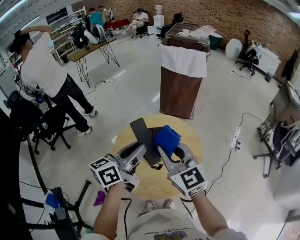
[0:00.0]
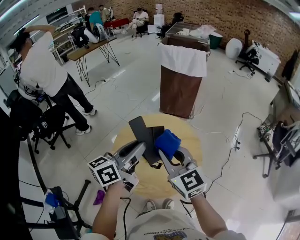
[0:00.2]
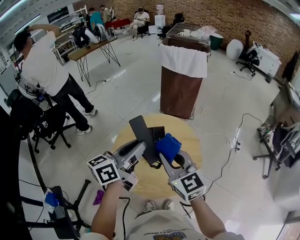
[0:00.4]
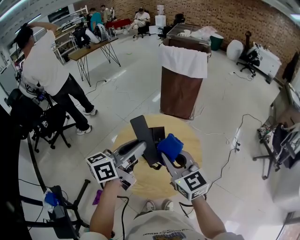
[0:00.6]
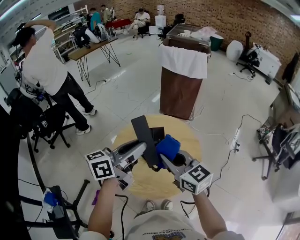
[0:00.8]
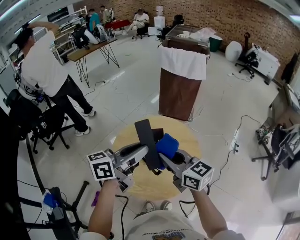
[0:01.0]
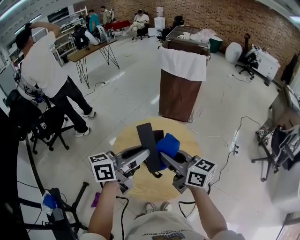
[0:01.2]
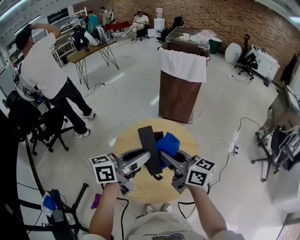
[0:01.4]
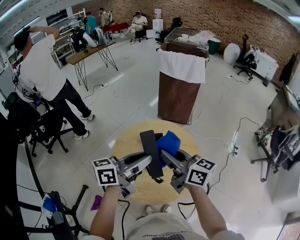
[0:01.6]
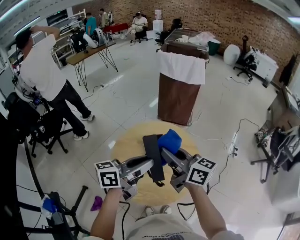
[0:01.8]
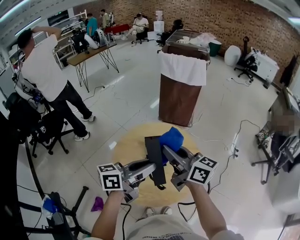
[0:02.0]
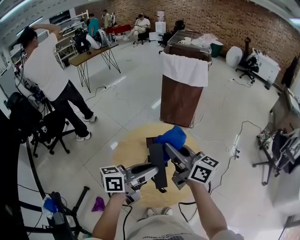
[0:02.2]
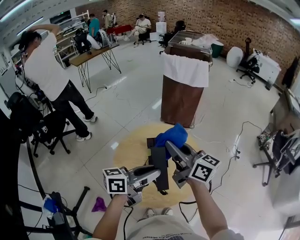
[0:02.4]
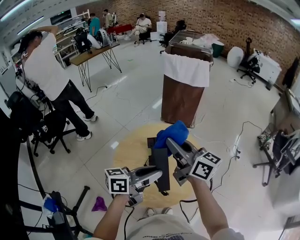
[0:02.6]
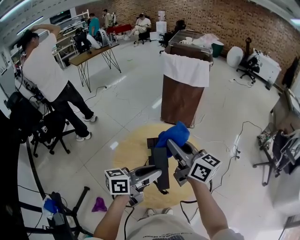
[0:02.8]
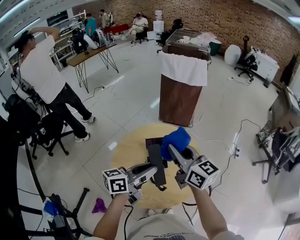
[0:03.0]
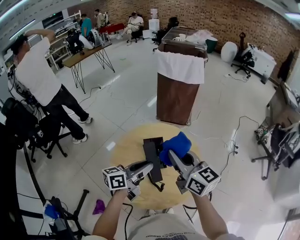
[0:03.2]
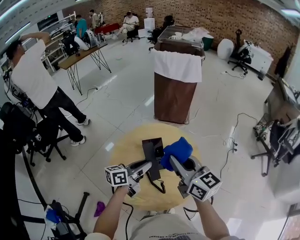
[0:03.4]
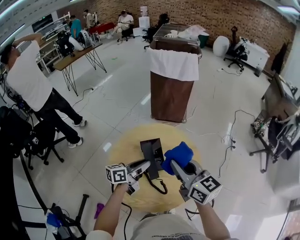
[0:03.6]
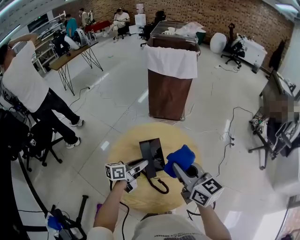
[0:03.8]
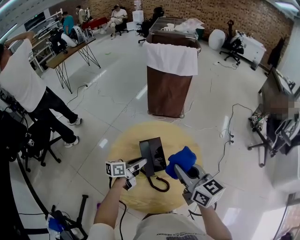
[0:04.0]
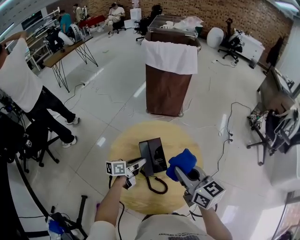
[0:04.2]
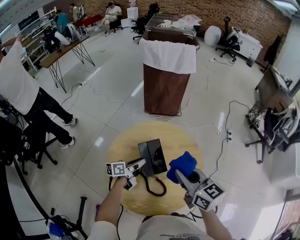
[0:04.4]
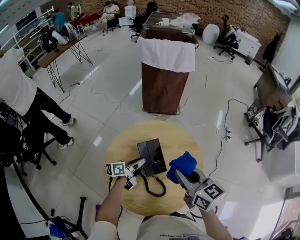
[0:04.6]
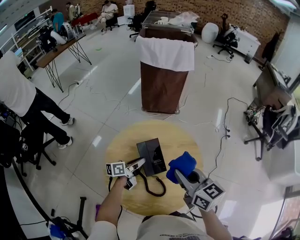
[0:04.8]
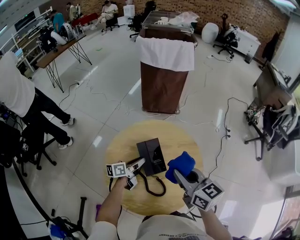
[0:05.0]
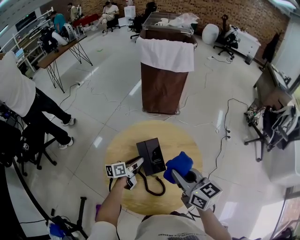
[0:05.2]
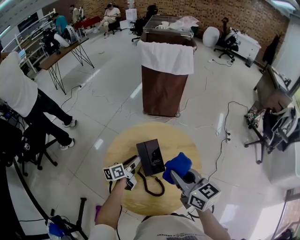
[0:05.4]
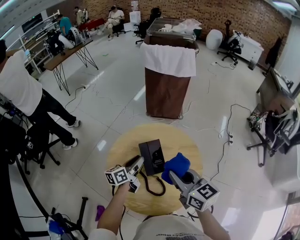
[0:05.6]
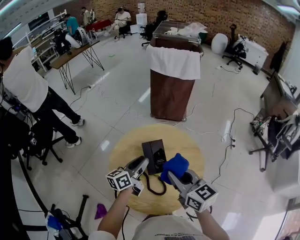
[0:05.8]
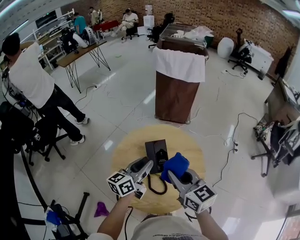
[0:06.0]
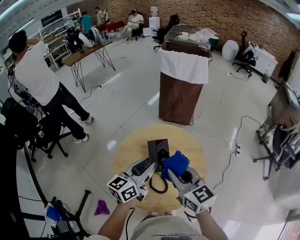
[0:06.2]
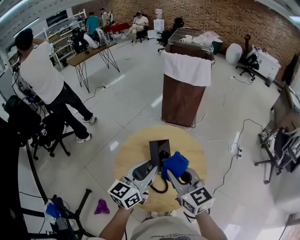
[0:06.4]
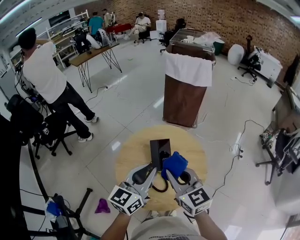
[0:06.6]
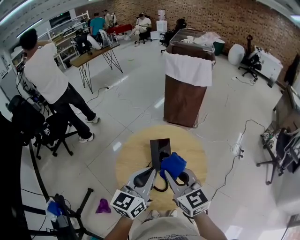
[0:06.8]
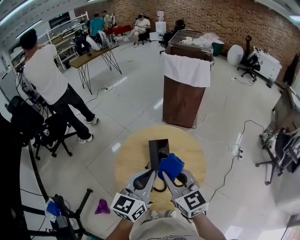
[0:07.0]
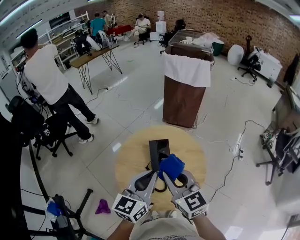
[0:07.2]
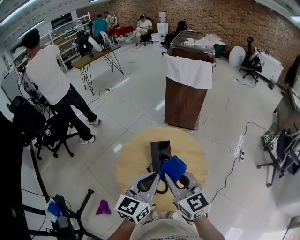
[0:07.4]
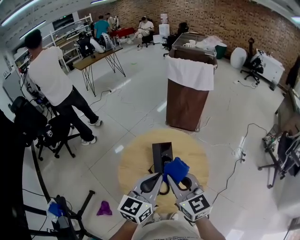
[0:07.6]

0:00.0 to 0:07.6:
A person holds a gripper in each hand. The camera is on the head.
0:00.0 to 0:01.6: The right gripper swivels approximately 40 degrees.
0:01.6 to 0:03.0: The left gripper moves downward, about 5 cm.
0:03.0 to 0:04.6: The right gripper is displaced downward by approximately 10 cm. Meanwhile the left gripper travels downward and forward by roughly 25 cm, and swivels some 20 degrees.
0:04.6 to 0:06.0: The left gripper moves upward, approximately 20 cm, and turns by about 30 degrees. Meanwhile the right gripper shifts by some 5 cm.
0:06.0 to 0:07.6: The left gripper moves backward and upward, some 15 cm, changes its angle by about 30 degrees, and closes its fingers.

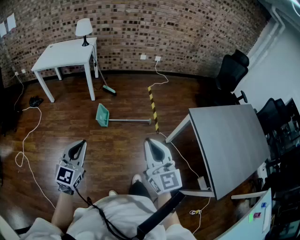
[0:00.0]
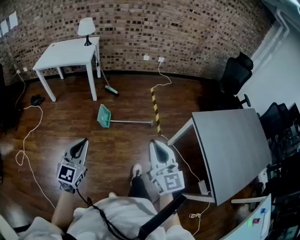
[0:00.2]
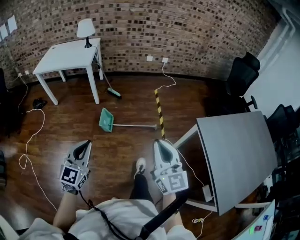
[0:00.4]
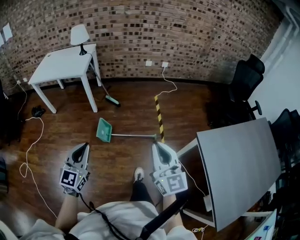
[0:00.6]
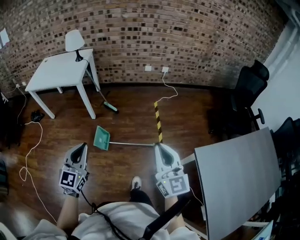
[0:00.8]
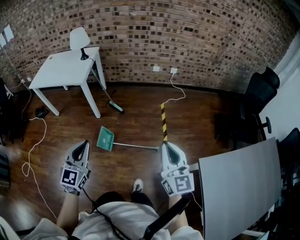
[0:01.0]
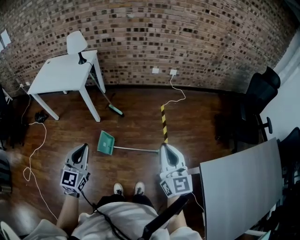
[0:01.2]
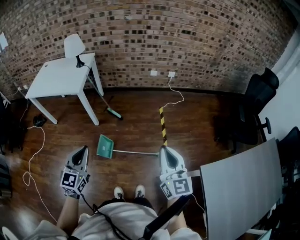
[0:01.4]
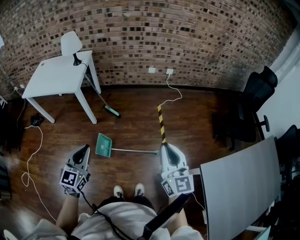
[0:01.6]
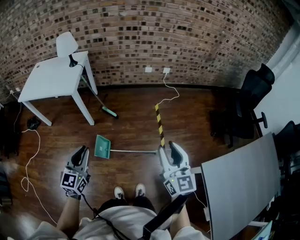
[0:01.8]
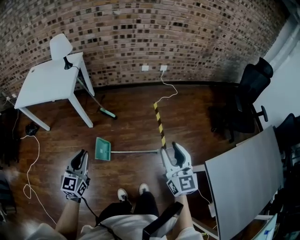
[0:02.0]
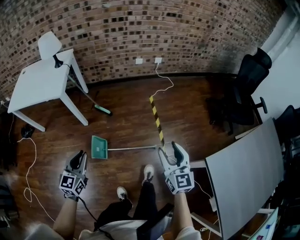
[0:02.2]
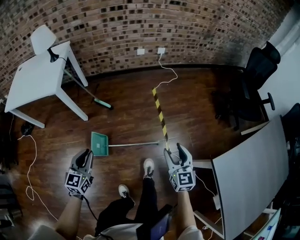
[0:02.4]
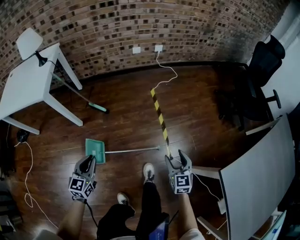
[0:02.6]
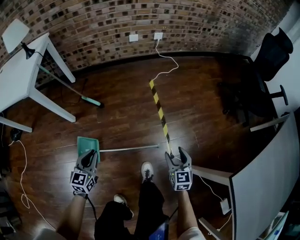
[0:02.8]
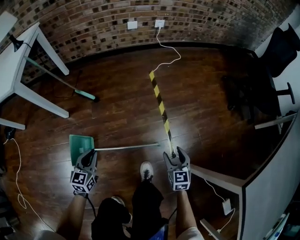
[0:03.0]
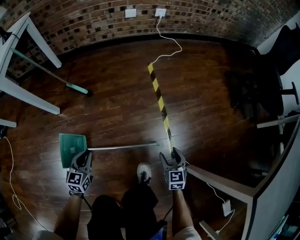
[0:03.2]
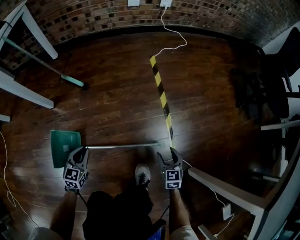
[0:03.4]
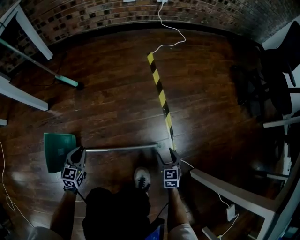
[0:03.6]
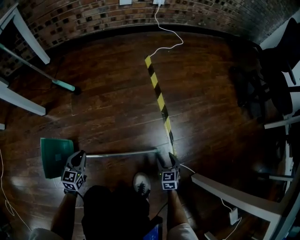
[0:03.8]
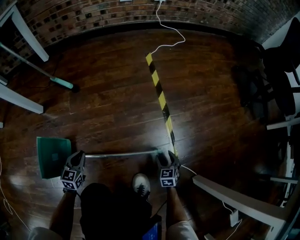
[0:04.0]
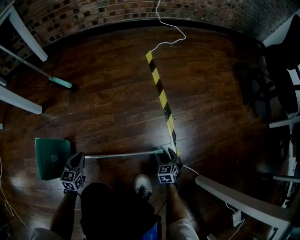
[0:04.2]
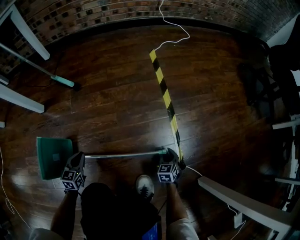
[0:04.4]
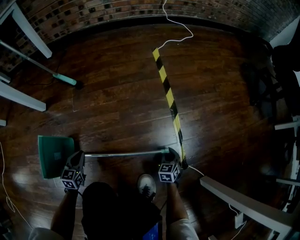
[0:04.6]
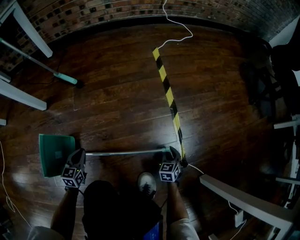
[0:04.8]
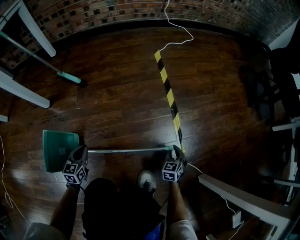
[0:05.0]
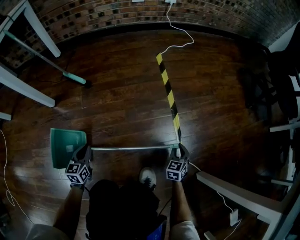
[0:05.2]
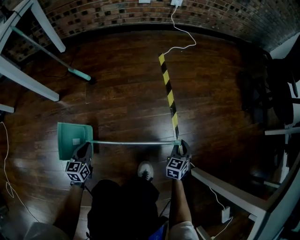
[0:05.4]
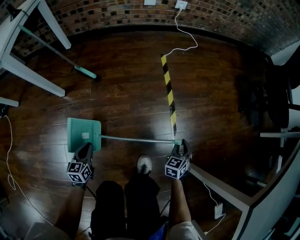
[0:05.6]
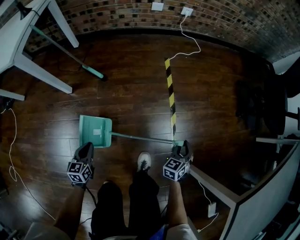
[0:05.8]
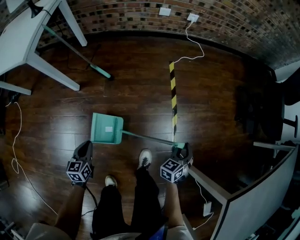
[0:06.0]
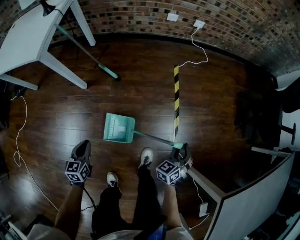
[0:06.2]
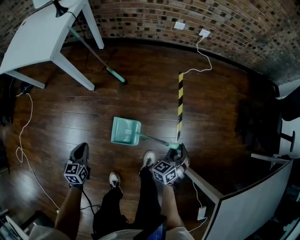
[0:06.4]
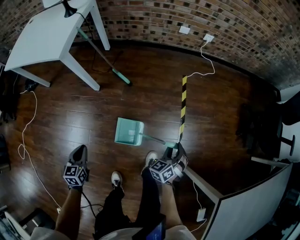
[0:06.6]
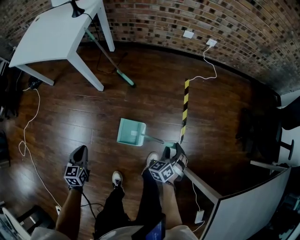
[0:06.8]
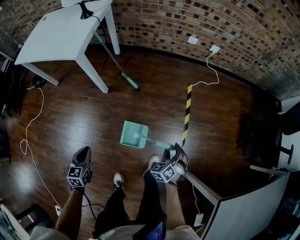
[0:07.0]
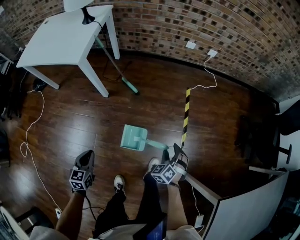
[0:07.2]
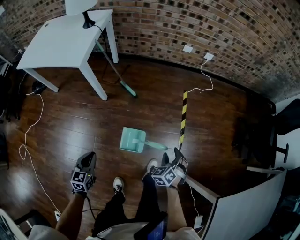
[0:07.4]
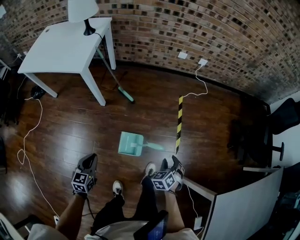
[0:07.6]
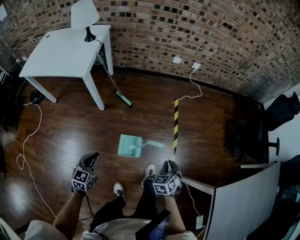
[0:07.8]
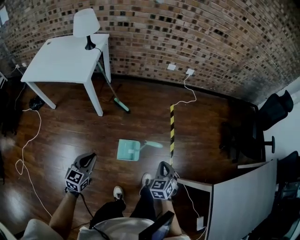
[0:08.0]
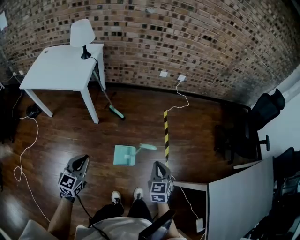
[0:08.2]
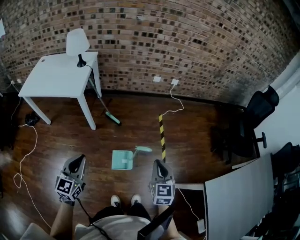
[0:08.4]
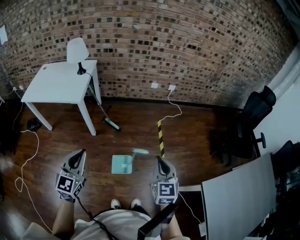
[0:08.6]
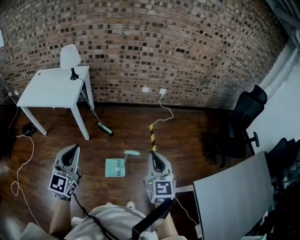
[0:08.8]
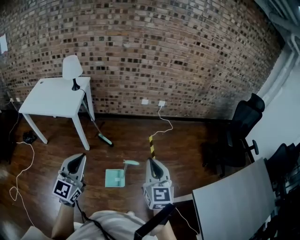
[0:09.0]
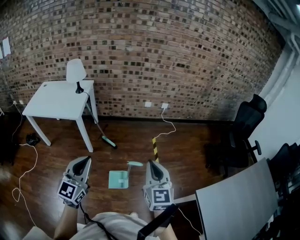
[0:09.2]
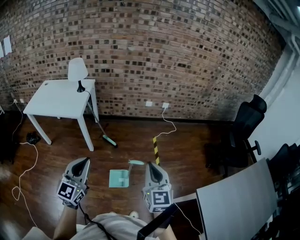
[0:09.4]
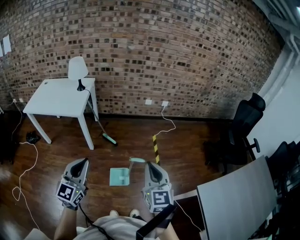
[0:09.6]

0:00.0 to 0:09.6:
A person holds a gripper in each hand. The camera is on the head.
0:00.0 to 0:01.6: Both grippers are carried forward, some 50 cm.
0:01.6 to 0:03.2: The two grippers go some 70 cm downward. The left gripper changes its angle by some 30 degrees; the right gripper tilts its fingers about 40 degrees downward, and opens its fingers.
0:03.2 to 0:04.8: The grippers both shift downward by some 30 cm. The right gripper closes.
0:04.8 to 0:06.4: Both grippers travel together upward, about 50 cm. The right gripper turns by roughly 20 degrees. The left gripper rotates roughly 20 degrees.
0:06.4 to 0:08.0: The left gripper is displaced upward by about 25 cm, and turns by roughly 30 degrees, while the right gripper moves upward, backward and to the left, about 30 cm, and closes.
0:08.0 to 0:09.6: Both grippers move upward, some 30 cm. The left gripper tilts its fingers approximately 30 degrees upward. Meanwhile the right gripper points its fingers approximately 40 degrees further upward.

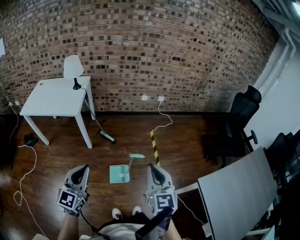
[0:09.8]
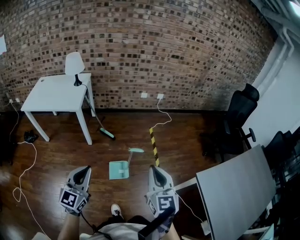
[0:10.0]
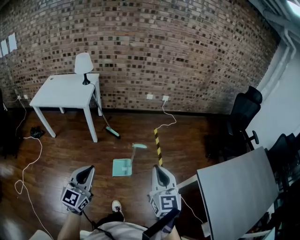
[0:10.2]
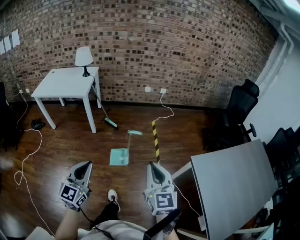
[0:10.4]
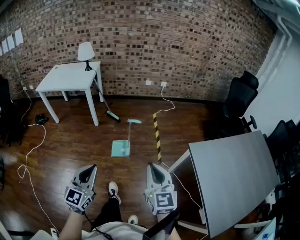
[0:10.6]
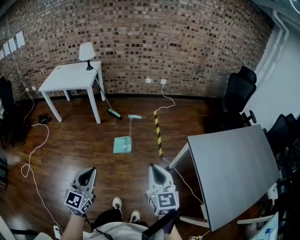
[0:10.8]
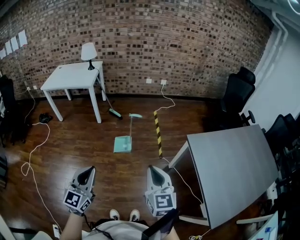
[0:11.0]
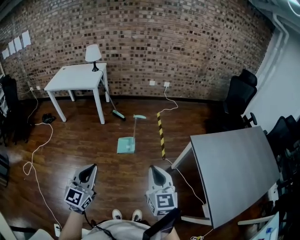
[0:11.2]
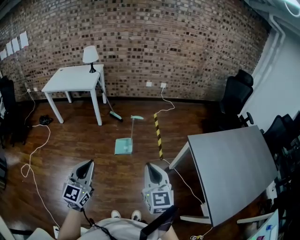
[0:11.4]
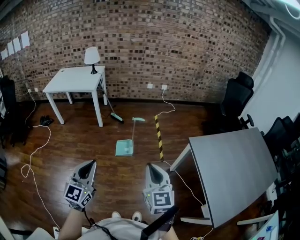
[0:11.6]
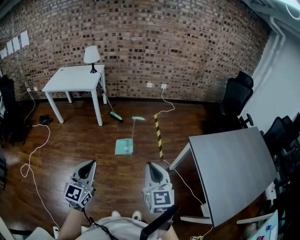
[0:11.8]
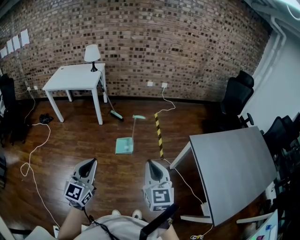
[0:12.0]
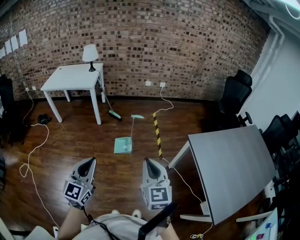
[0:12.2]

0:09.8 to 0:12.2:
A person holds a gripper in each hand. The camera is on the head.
0:09.8 to 0:11.0: Both grippers are carried backward, roughly 40 cm.
0:11.0 to 0:12.2: The left gripper ends up about 5 cm from where it was, while the right gripper heads to the left, covering roughly 5 cm.

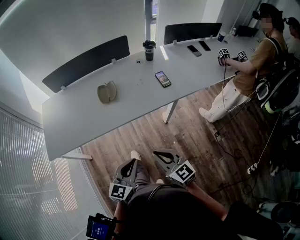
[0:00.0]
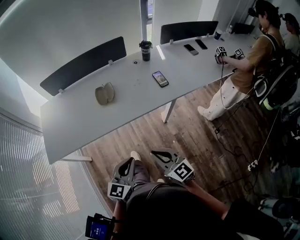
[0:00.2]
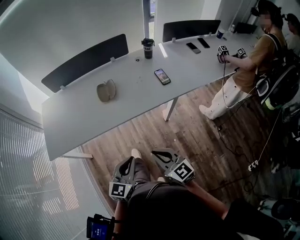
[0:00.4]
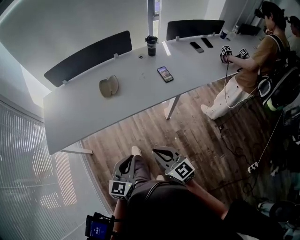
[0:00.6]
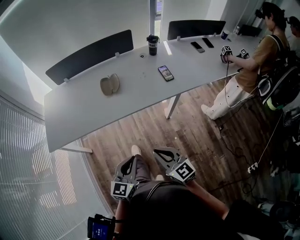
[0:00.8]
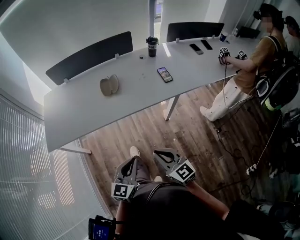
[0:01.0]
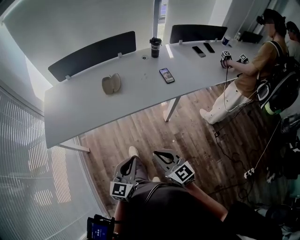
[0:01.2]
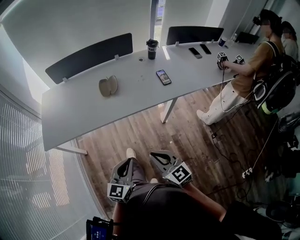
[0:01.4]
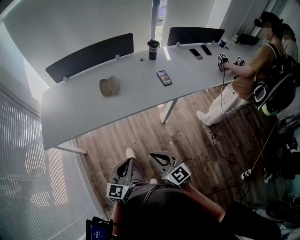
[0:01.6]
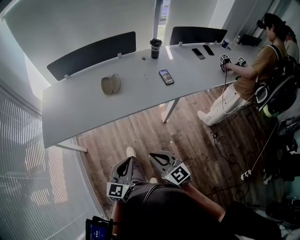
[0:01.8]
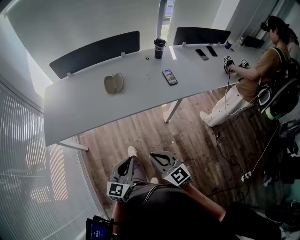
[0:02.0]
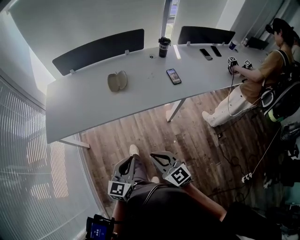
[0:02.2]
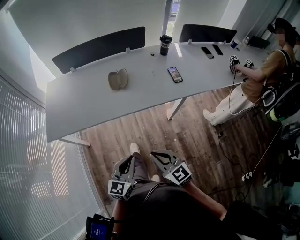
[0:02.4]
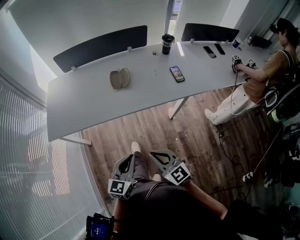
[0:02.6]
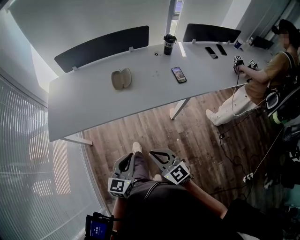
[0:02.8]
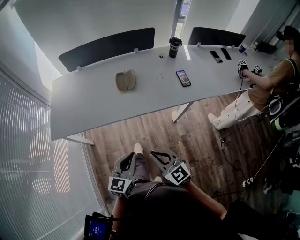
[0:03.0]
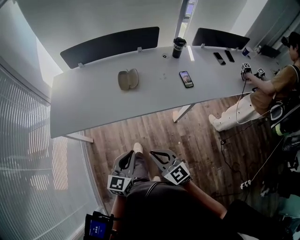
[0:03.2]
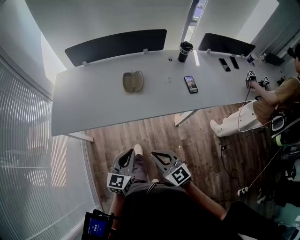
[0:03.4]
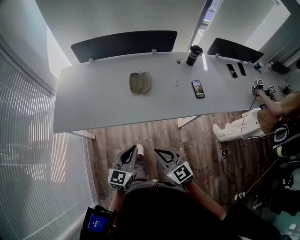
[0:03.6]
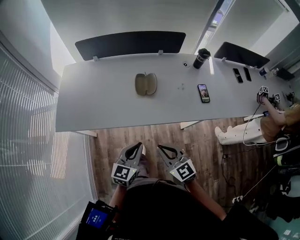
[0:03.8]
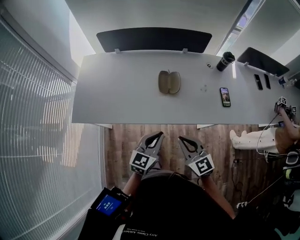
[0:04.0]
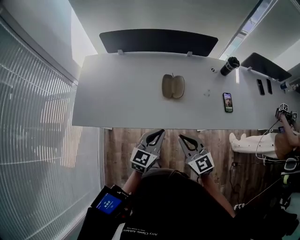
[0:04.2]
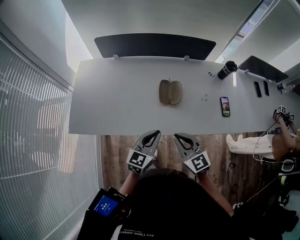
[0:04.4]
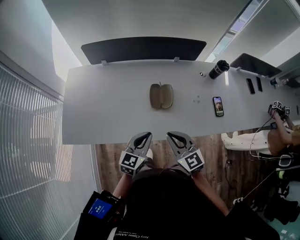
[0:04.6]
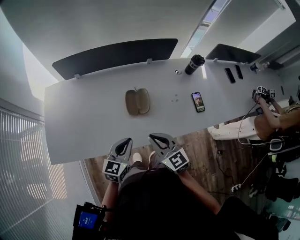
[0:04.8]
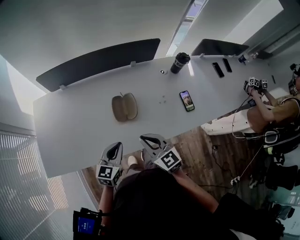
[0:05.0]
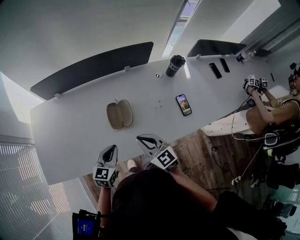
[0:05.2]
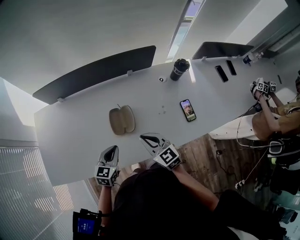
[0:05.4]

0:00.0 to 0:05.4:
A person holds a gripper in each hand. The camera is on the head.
0:00.0 to 0:01.4: The right gripper goes approximately 5 cm backward. Meanwhile the left gripper changes place by approximately 5 cm.
0:01.4 to 0:02.8: The left gripper changes place by about 5 cm; the right gripper shifts some 5 cm to the left.
0:02.8 to 0:04.0: The grippers both shift forward by some 20 cm.
0:04.0 to 0:05.4: The left gripper goes approximately 25 cm forward and downward, while the right gripper is displaced forward by approximately 25 cm.
